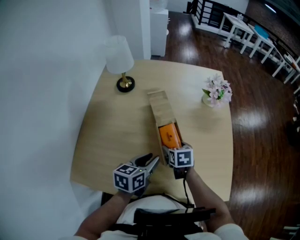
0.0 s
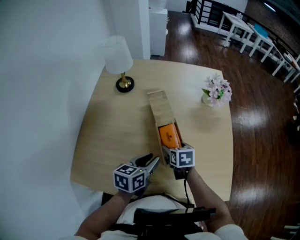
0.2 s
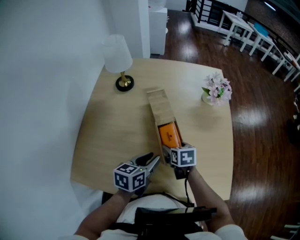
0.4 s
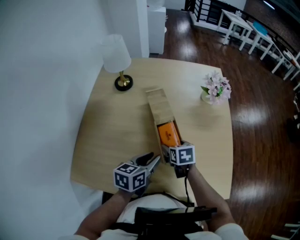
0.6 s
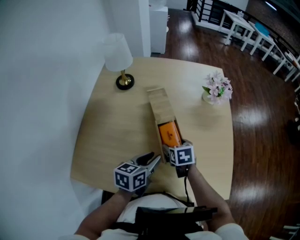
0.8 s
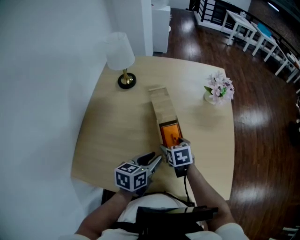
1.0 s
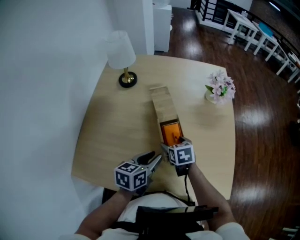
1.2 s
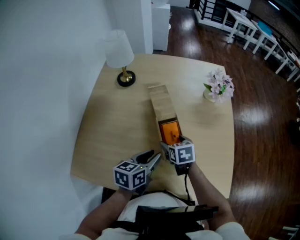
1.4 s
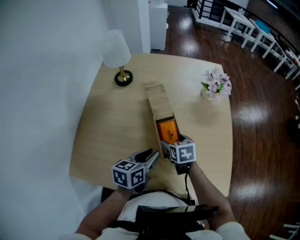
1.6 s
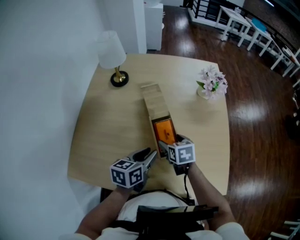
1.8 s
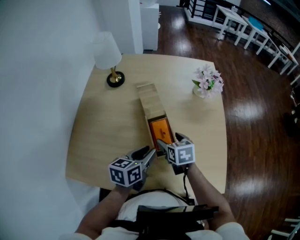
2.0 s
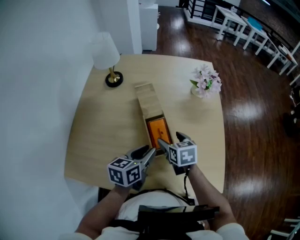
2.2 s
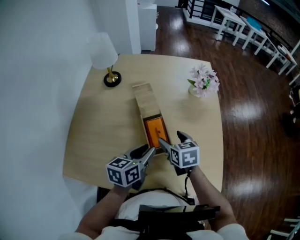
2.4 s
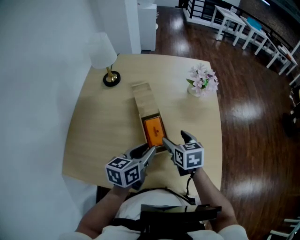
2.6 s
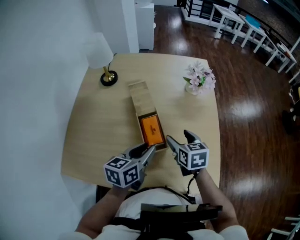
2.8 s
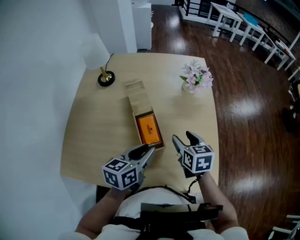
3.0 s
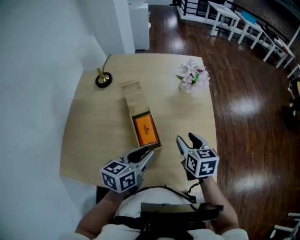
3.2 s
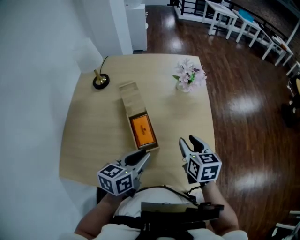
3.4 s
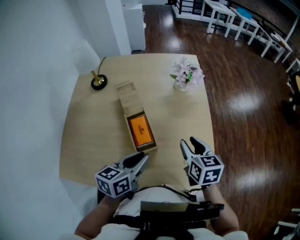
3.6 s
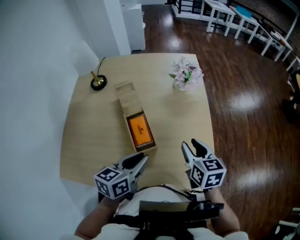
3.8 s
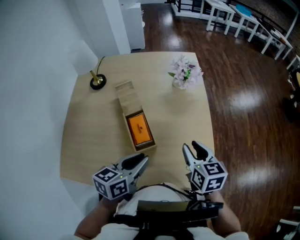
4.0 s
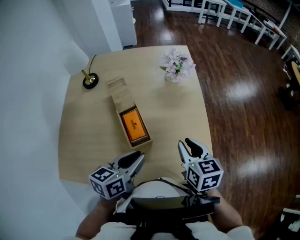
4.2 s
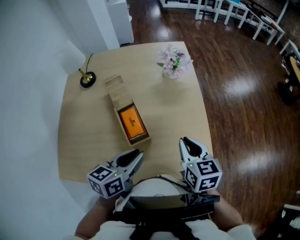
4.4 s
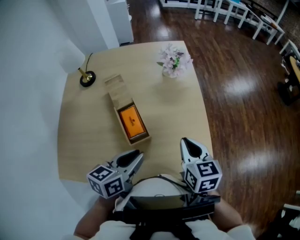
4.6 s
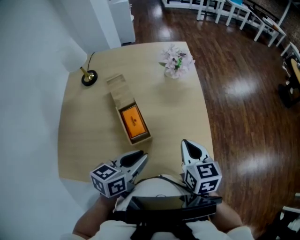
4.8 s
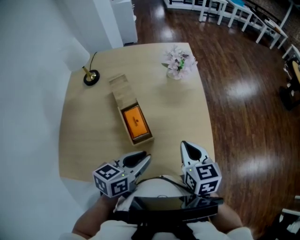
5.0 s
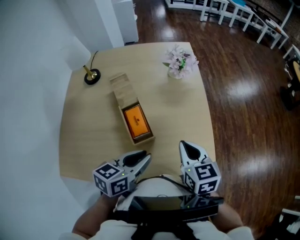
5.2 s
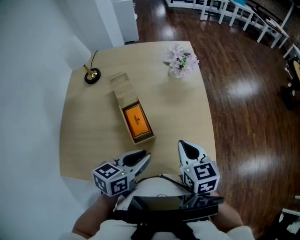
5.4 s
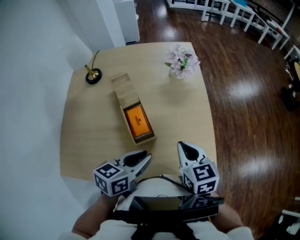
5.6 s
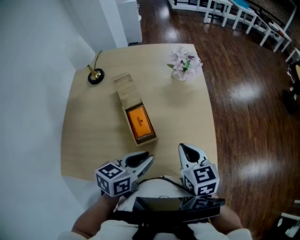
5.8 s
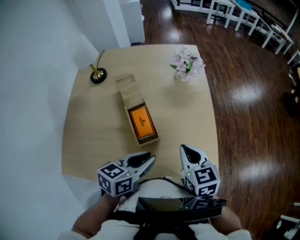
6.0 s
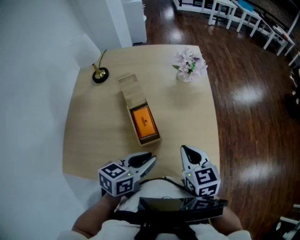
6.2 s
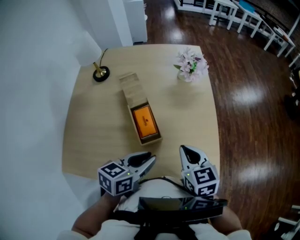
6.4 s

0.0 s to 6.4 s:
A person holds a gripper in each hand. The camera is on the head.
0.0 to 1.6 s: The grippers stay close to where they were, moving slightly.
1.6 to 3.2 s: The right gripper goes approximately 20 cm to the right and upward, and closes up. The left gripper is displaced to the right and upward by approximately 10 cm.
3.2 to 4.8 s: The left gripper ends up approximately 5 cm from where it was; the right gripper moves backward and to the right, roughly 10 cm, and closes up.
4.8 to 6.4 s: The right gripper moves to the left, roughly 5 cm.

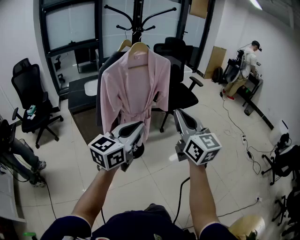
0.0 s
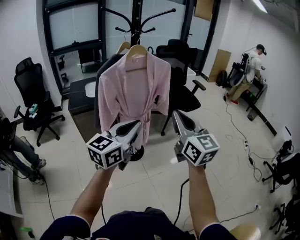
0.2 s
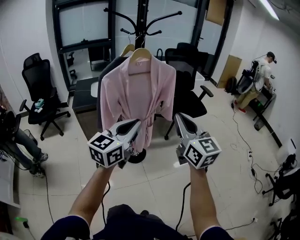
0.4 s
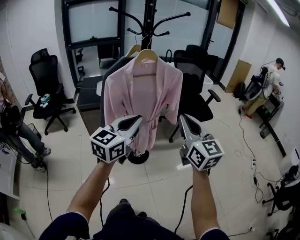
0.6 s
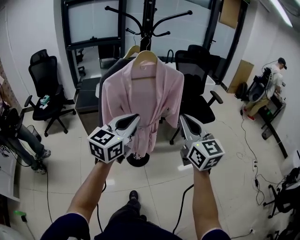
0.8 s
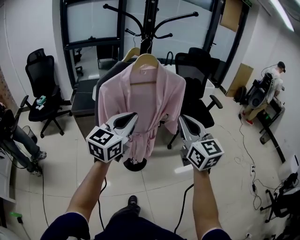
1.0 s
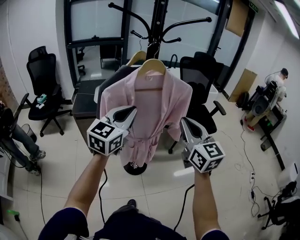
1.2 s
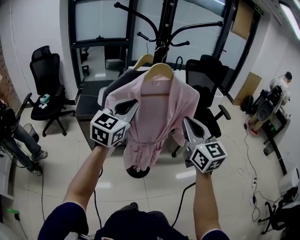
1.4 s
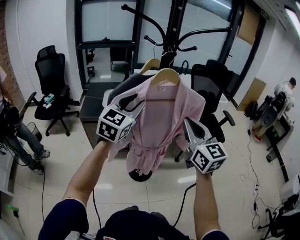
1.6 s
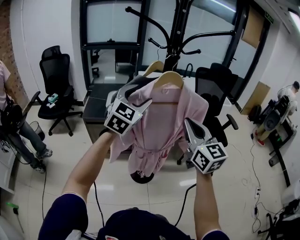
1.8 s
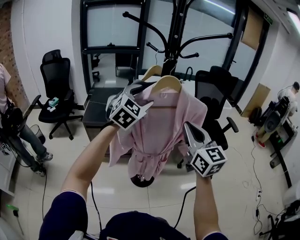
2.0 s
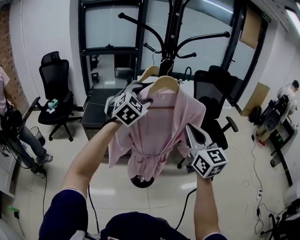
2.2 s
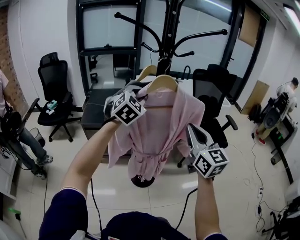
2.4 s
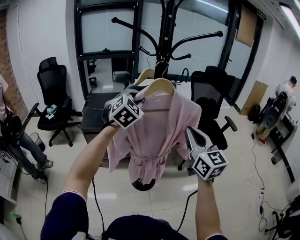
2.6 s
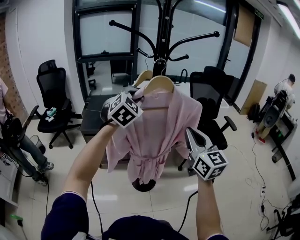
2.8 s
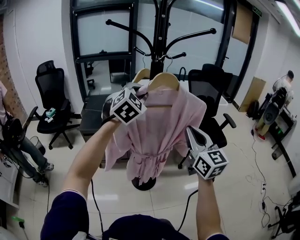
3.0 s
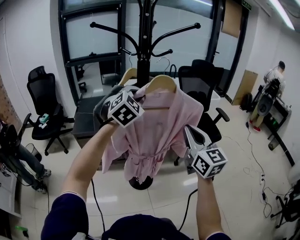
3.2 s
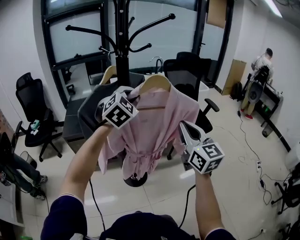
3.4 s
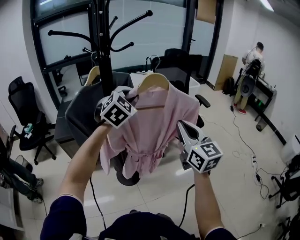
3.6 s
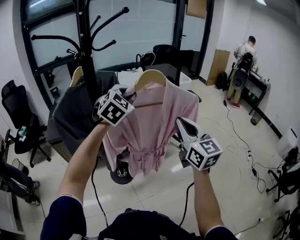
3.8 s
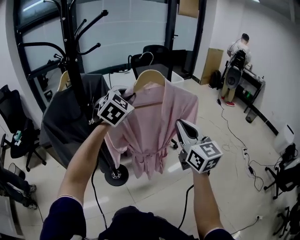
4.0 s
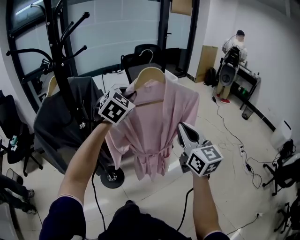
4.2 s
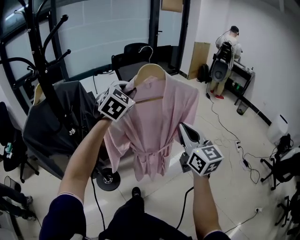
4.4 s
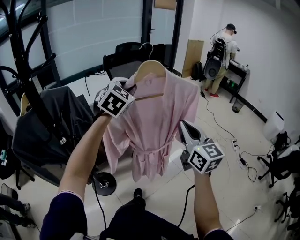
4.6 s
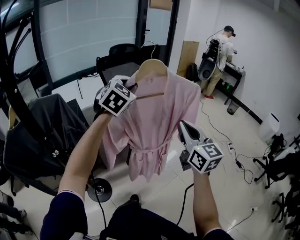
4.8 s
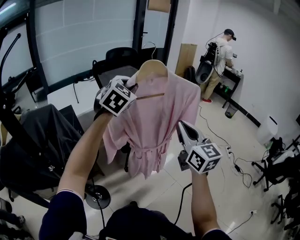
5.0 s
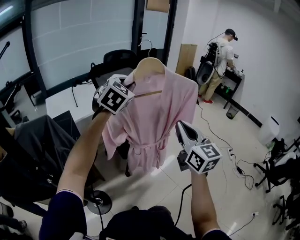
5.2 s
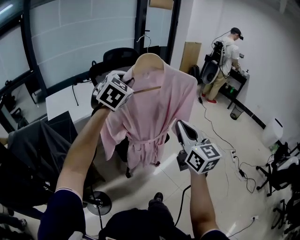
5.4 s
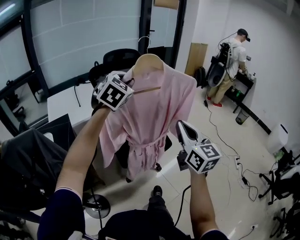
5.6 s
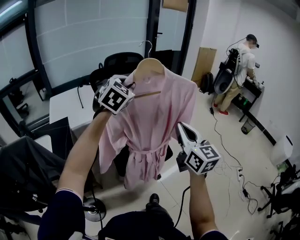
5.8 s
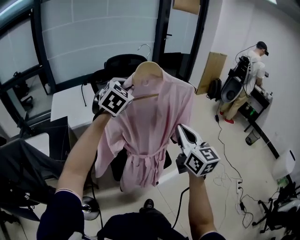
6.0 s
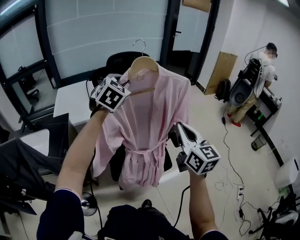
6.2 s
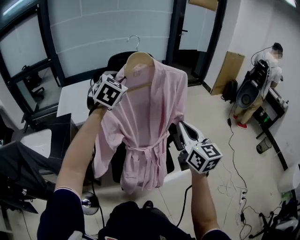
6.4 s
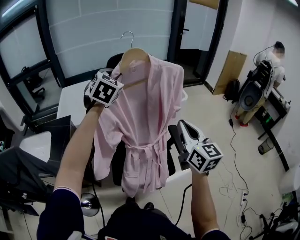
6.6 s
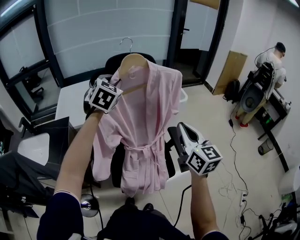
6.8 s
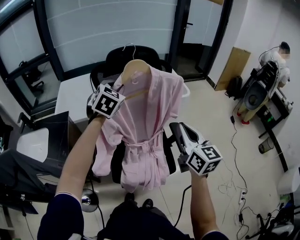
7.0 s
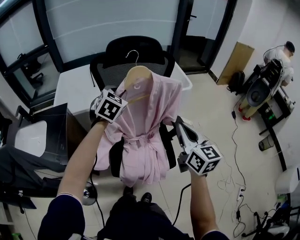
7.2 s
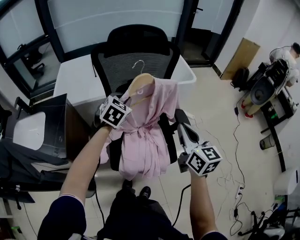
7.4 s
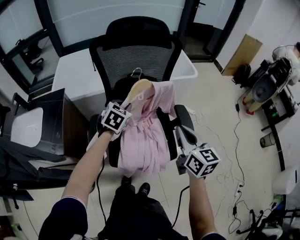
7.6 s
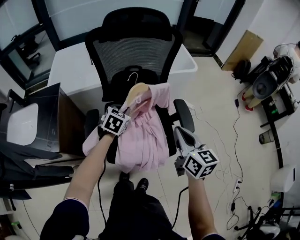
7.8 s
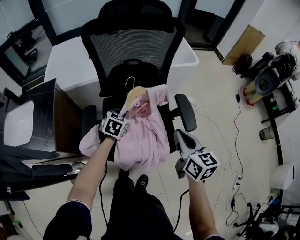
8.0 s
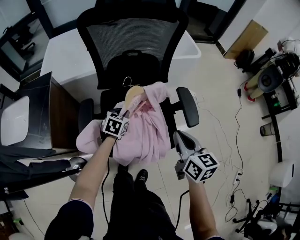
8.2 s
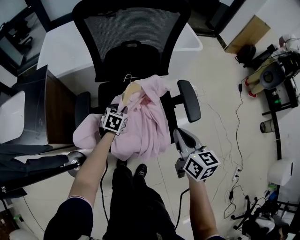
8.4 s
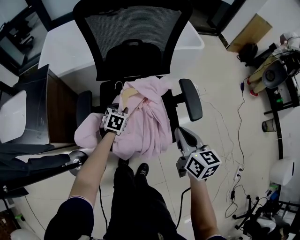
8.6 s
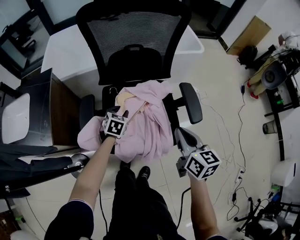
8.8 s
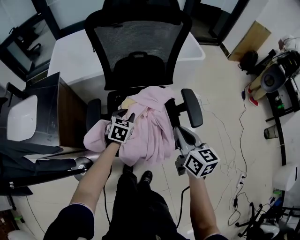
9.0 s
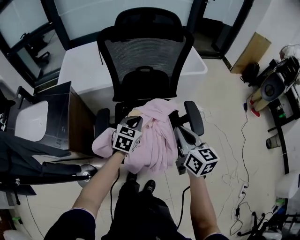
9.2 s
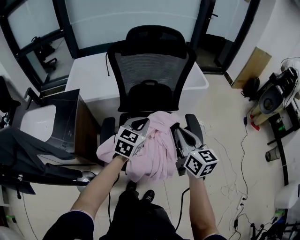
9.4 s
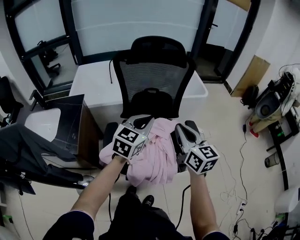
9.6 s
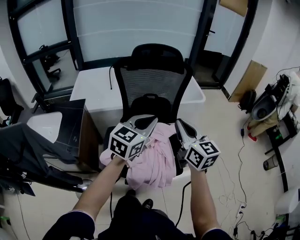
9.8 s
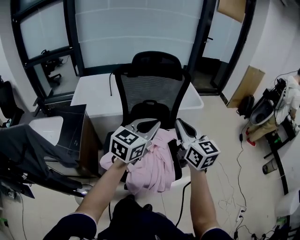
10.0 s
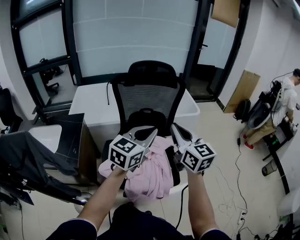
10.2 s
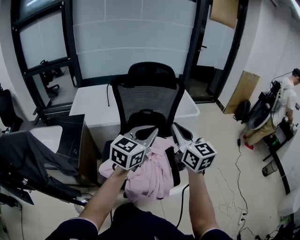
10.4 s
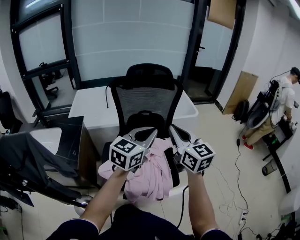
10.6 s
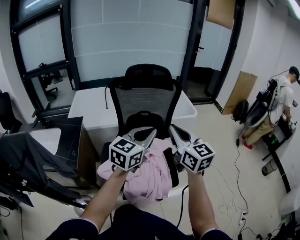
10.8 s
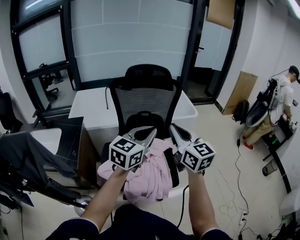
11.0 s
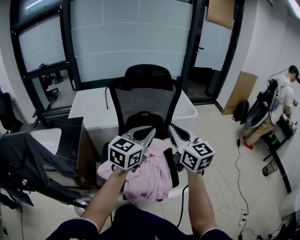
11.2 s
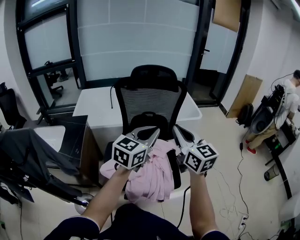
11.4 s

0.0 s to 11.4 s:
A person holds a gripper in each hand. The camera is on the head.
0.0 to 1.4 s: Both grippers move forward, some 25 cm. The left gripper rotates roughly 30 degrees.
1.4 to 2.8 s: The left gripper moves forward, approximately 10 cm, swivels roughly 40 degrees, and opens, then closes once more.
2.8 to 4.2 s: Both grippers travel together to the right, some 30 cm. The left gripper rotates roughly 20 degrees.
4.2 to 5.6 s: The grippers both shift forward by some 40 cm.
5.6 to 7.2 s: The left gripper travels forward and downward by some 25 cm, and swivels approximately 30 degrees. Meanwhile the right gripper shifts approximately 25 cm forward, and swivels approximately 20 degrees.
7.2 to 8.6 s: The right gripper is displaced downward by roughly 20 cm, and swivels about 20 degrees. Meanwhile the left gripper travels downward by roughly 40 cm, and swivels approximately 30 degrees.
8.6 to 10.0 s: The right gripper moves upward, about 25 cm, and turns by roughly 30 degrees. The left gripper heads upward, covering roughly 40 cm, tips its fingers upward by roughly 40 degrees, and closes its fingers.
10.0 to 11.4 s: There are only small adjustments of the grippers.

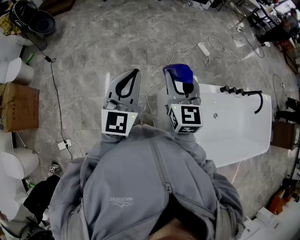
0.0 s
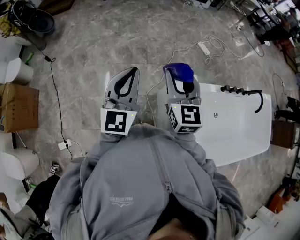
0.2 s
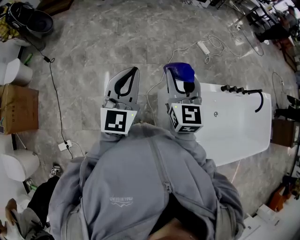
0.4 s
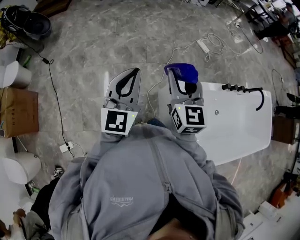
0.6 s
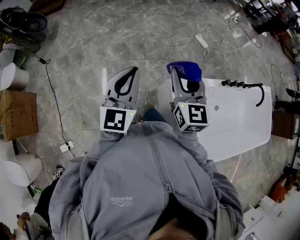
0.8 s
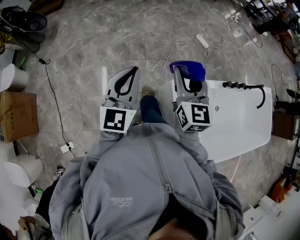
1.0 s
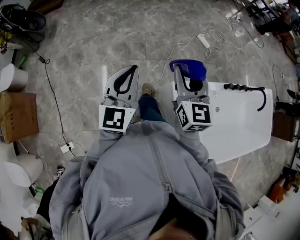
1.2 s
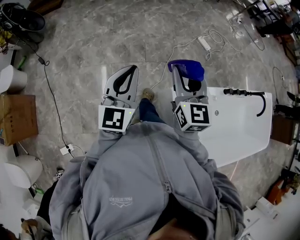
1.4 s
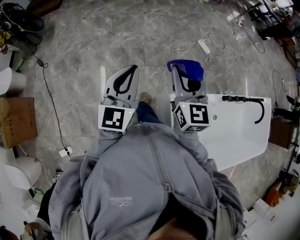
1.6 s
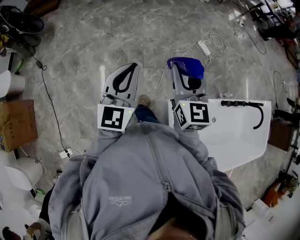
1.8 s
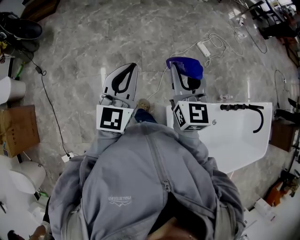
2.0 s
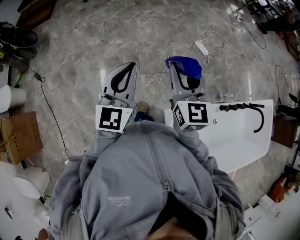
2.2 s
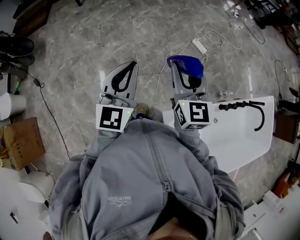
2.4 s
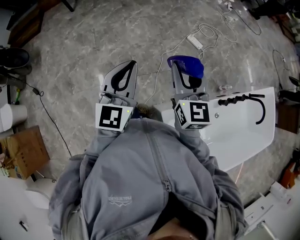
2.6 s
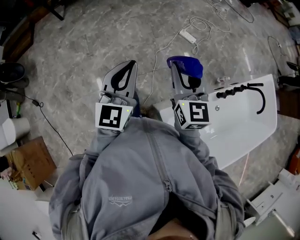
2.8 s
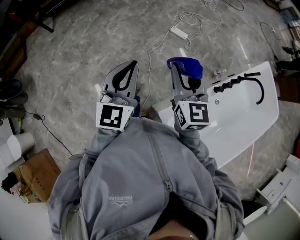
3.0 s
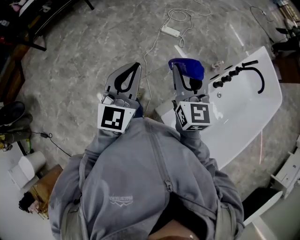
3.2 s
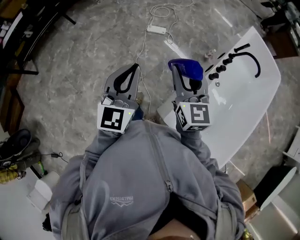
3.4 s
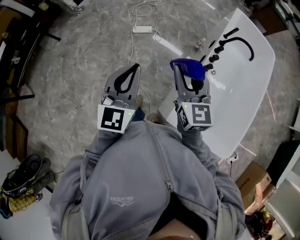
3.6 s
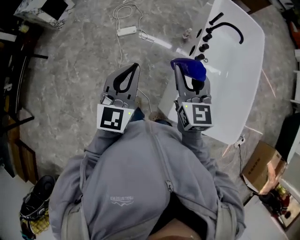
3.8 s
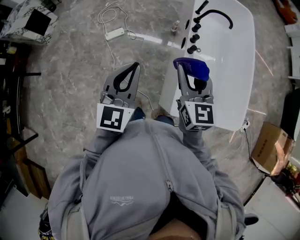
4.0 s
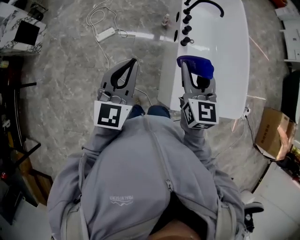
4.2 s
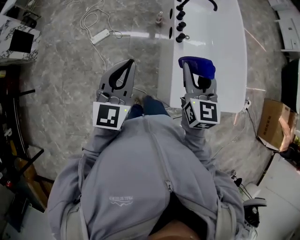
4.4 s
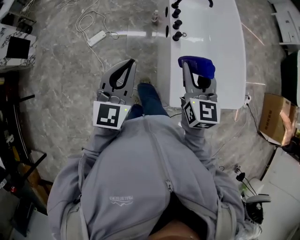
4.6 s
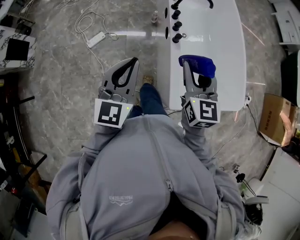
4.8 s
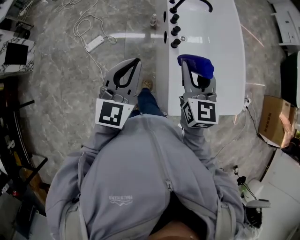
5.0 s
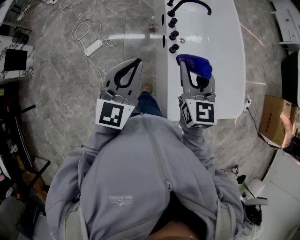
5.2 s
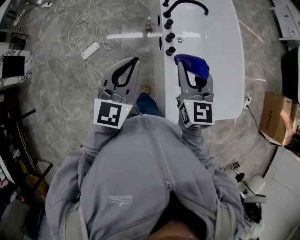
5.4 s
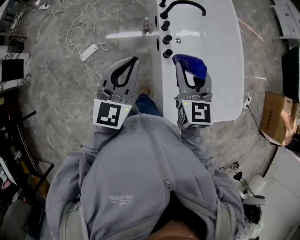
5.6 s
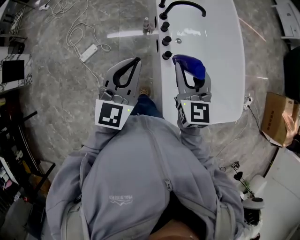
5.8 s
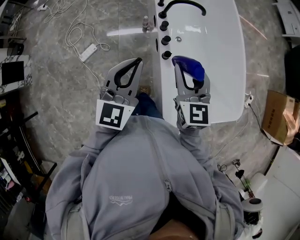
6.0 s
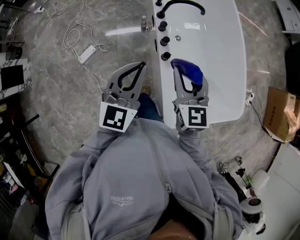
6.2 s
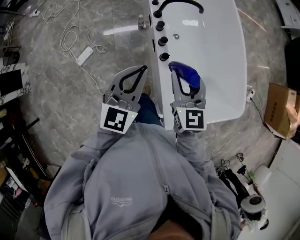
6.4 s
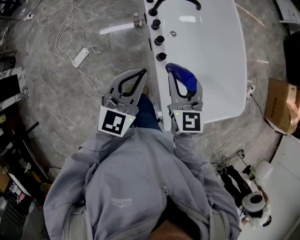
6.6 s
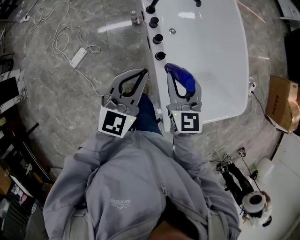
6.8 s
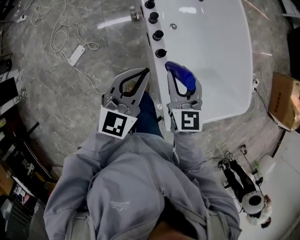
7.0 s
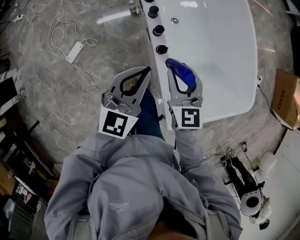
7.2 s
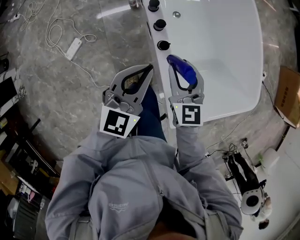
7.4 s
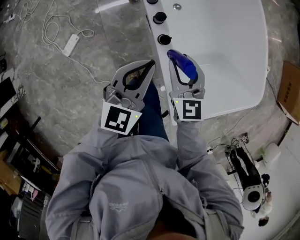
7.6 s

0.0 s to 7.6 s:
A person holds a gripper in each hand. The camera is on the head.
0.0 to 1.6 s: The two grippers go about 15 cm forward.
1.6 to 3.0 s: The two grippers go approximately 25 cm forward and to the right. The right gripper changes its angle by some 20 degrees. The left gripper rotates some 20 degrees.
3.0 to 4.6 s: The left gripper shifts by about 25 cm, and changes its angle by some 60 degrees, while the right gripper changes place by about 20 cm, and rotates about 70 degrees.
4.6 to 6.0 s: The grippers both shift forward by some 20 cm.
6.0 to 7.6 s: Both grippers travel together downward, some 20 cm. The left gripper swivels approximately 20 degrees.
